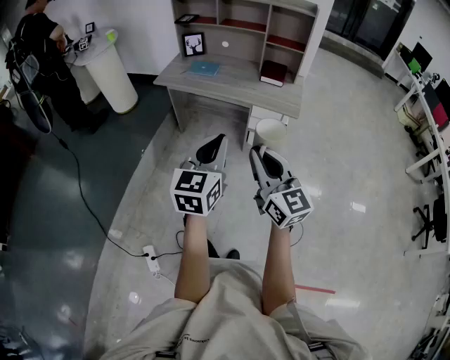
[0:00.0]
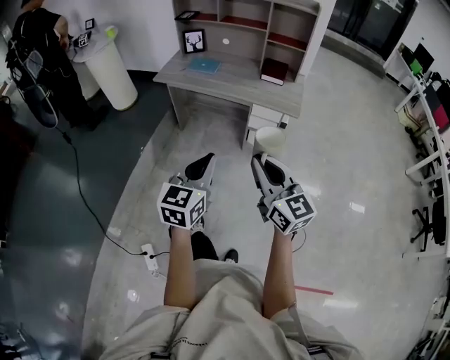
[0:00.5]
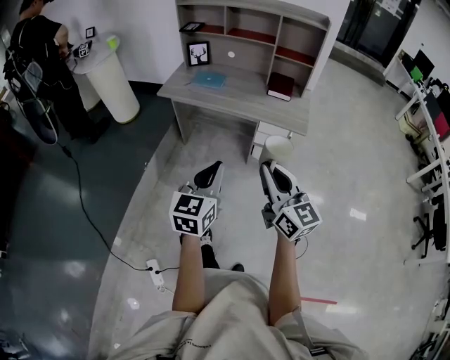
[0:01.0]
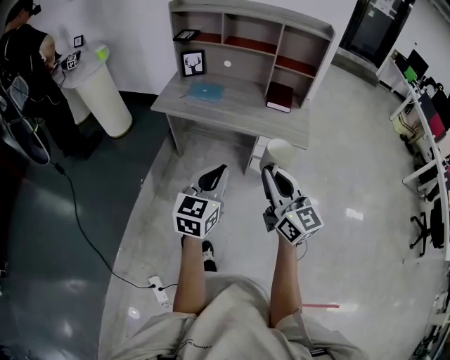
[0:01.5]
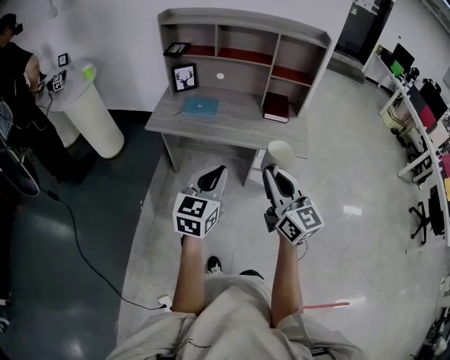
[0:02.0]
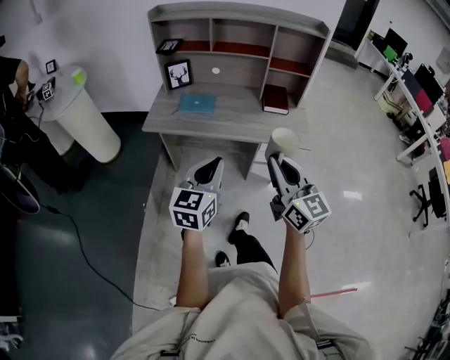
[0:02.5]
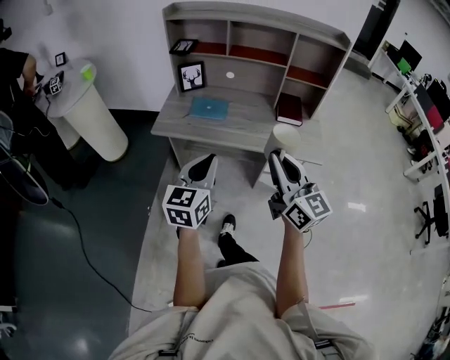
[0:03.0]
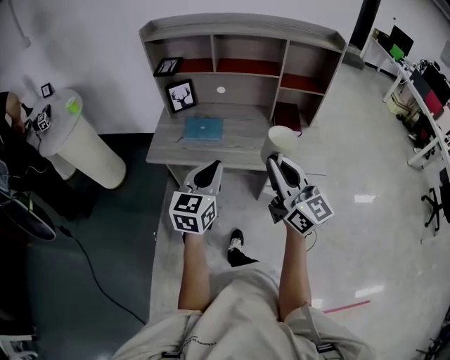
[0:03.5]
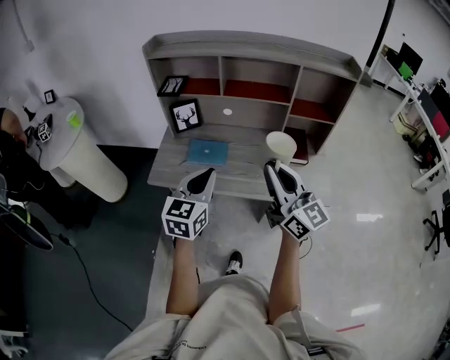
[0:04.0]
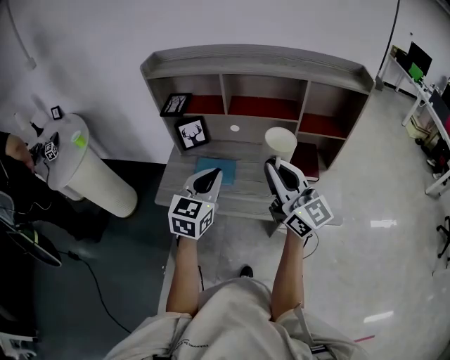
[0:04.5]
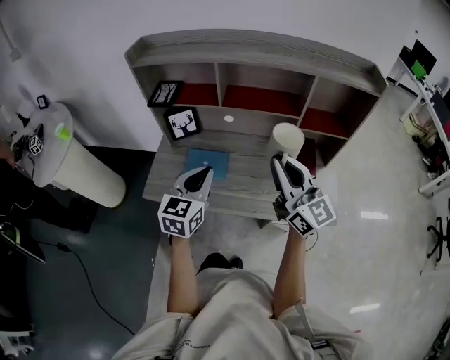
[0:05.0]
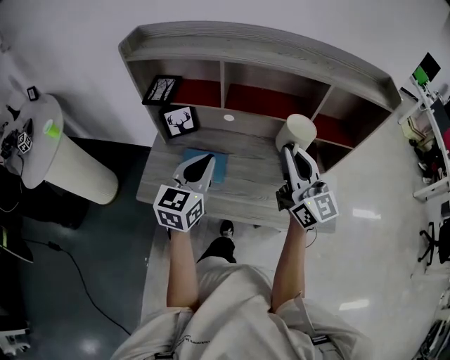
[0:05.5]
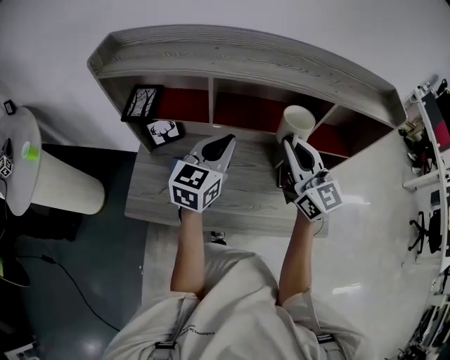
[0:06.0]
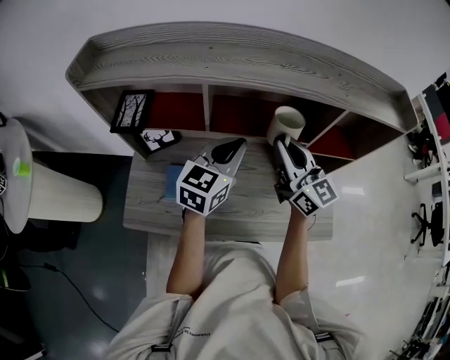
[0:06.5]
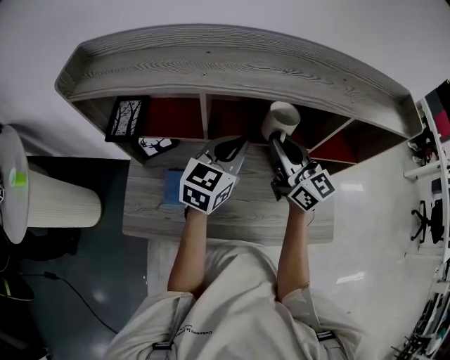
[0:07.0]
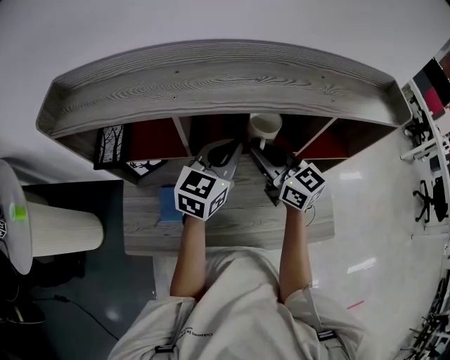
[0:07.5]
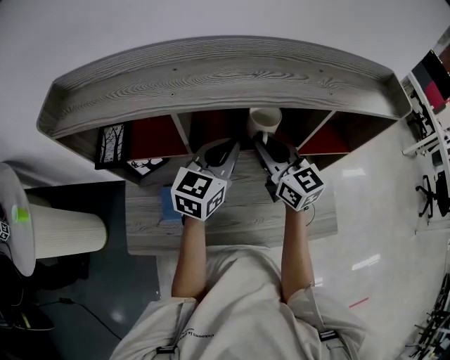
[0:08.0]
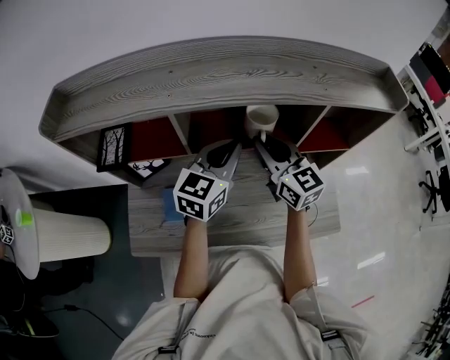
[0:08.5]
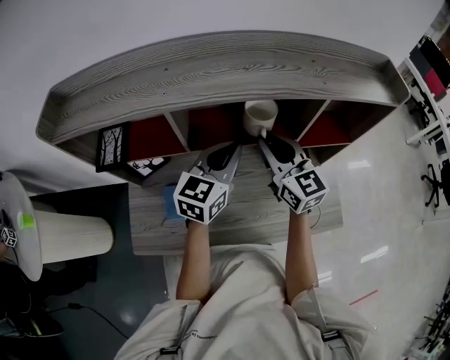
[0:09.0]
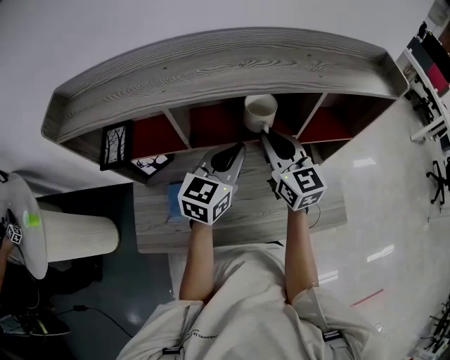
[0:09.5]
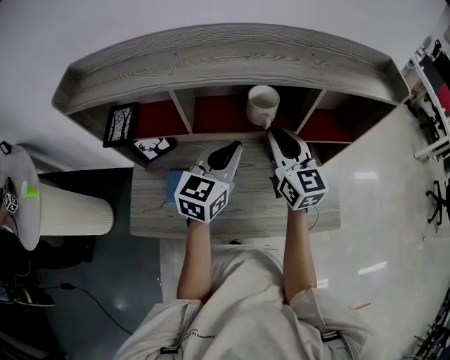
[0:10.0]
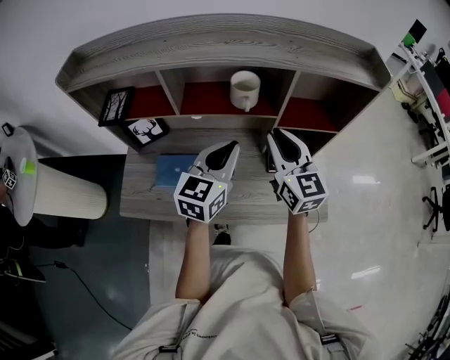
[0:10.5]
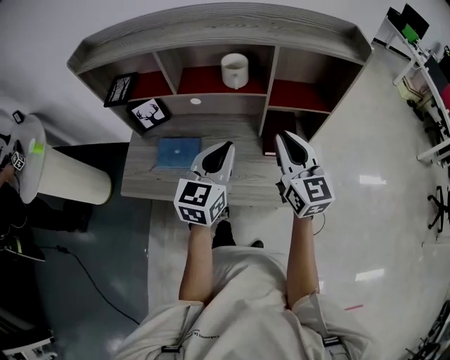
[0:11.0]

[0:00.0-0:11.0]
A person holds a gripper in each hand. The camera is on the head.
0:00.0 to 0:02.0: The left gripper moves forward and to the left, about 25 cm; the right gripper moves forward, about 20 cm.
0:02.0 to 0:03.5: The grippers both shift forward by approximately 20 cm.
0:03.5 to 0:05.5: The grippers both shift forward by roughly 30 cm.
0:05.5 to 0:07.5: The right gripper heads forward, covering approximately 20 cm, and turns by about 20 degrees. Meanwhile the left gripper is displaced forward and to the right by approximately 25 cm, and swivels about 20 degrees.
0:07.5 to 0:09.0: The grippers move only a little.
0:09.0 to 0:11.0: The two grippers go some 20 cm backward and to the right.

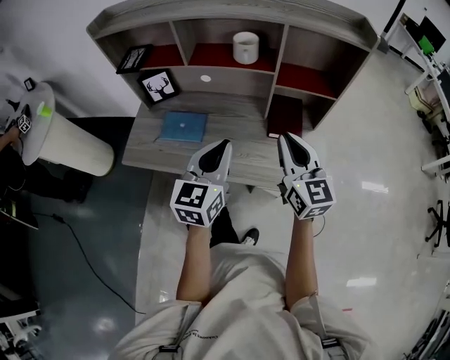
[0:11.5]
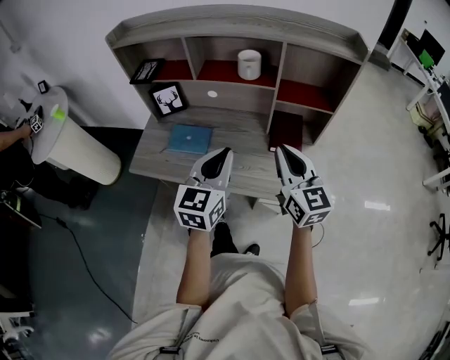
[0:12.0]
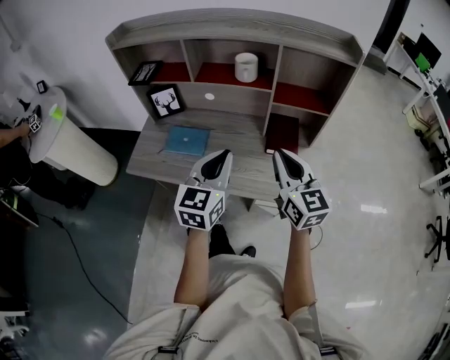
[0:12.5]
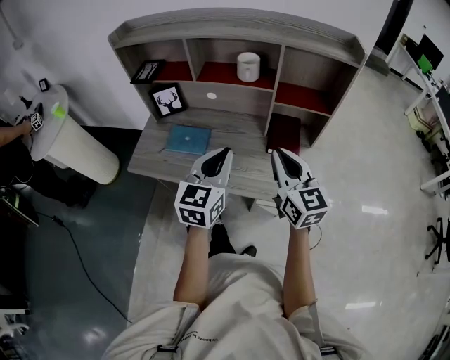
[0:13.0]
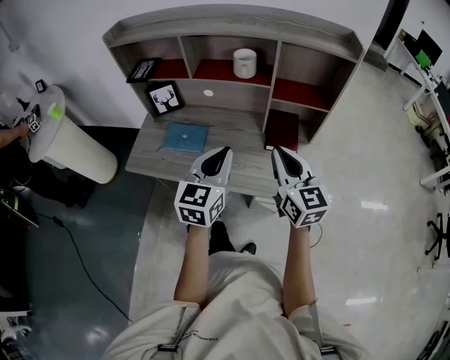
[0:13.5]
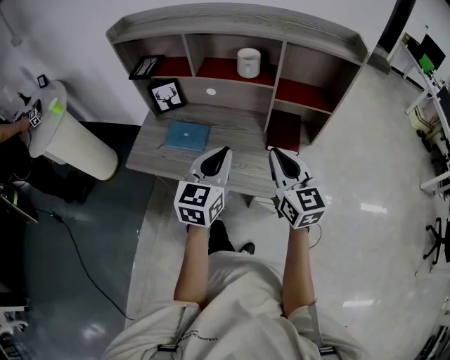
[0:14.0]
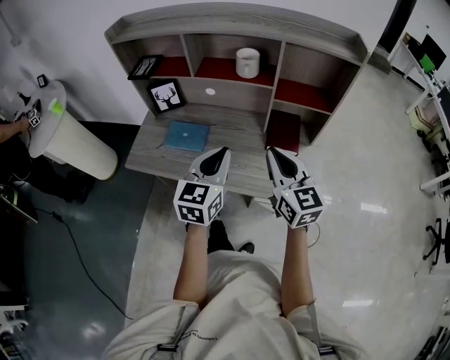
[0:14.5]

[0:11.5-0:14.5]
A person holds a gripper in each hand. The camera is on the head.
0:11.5 to 0:14.5: There are only small adjustments of the grippers.

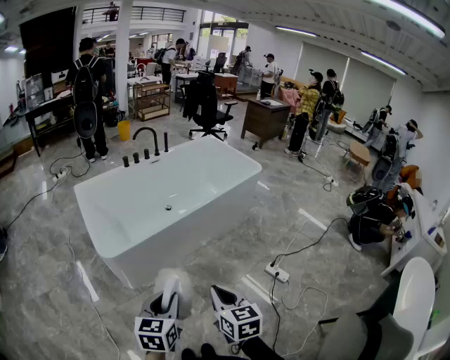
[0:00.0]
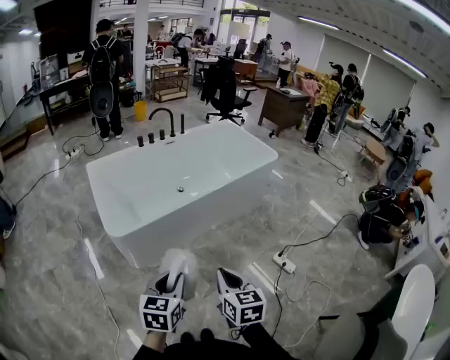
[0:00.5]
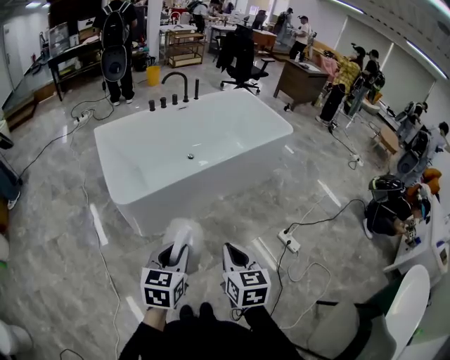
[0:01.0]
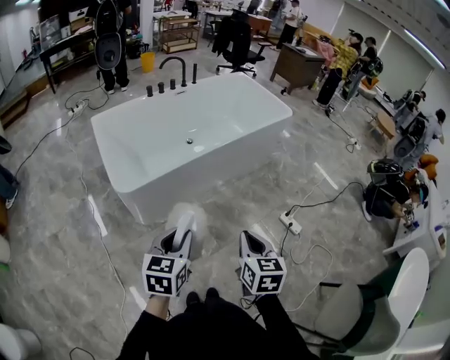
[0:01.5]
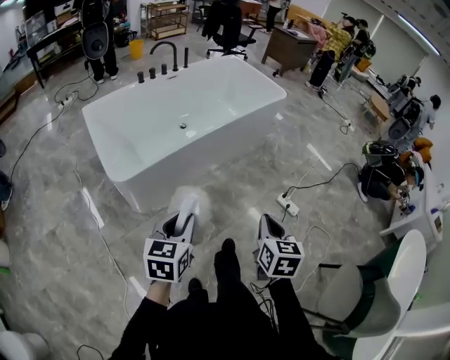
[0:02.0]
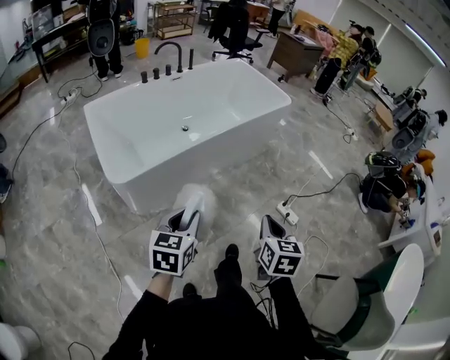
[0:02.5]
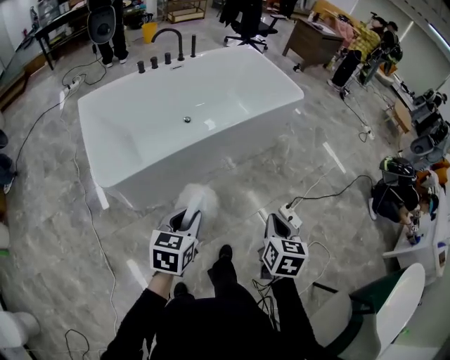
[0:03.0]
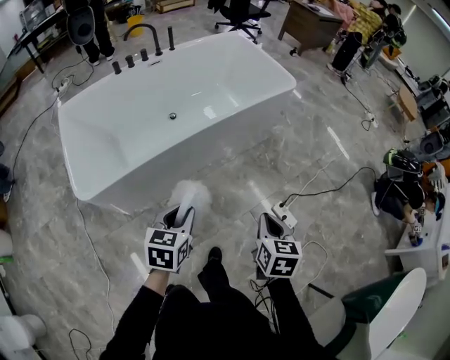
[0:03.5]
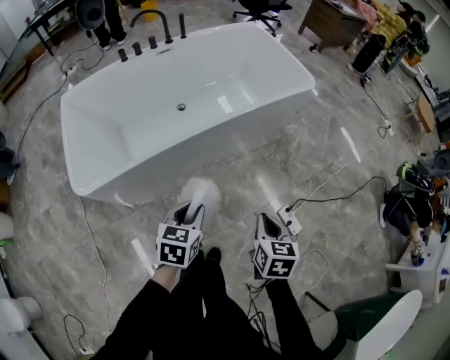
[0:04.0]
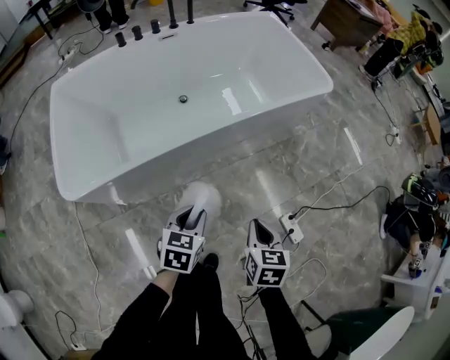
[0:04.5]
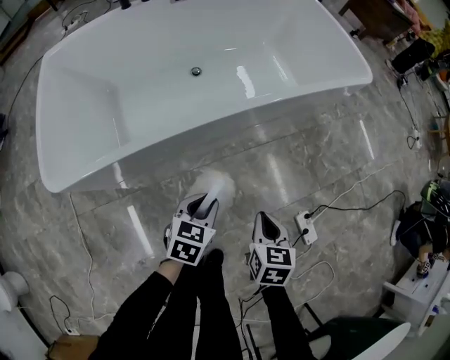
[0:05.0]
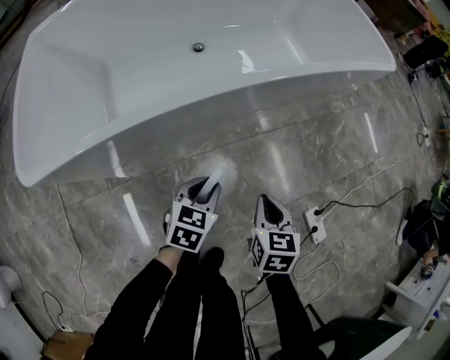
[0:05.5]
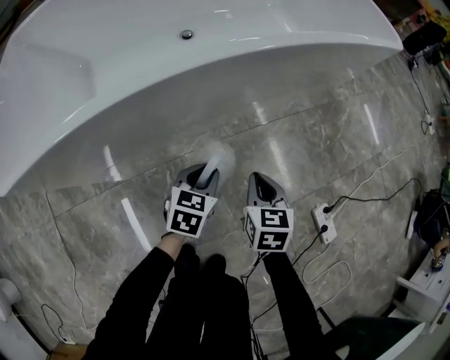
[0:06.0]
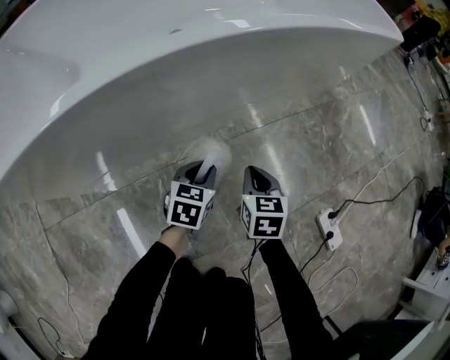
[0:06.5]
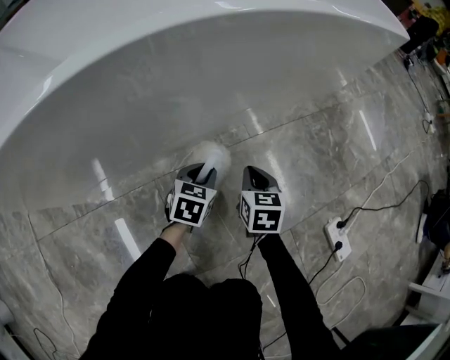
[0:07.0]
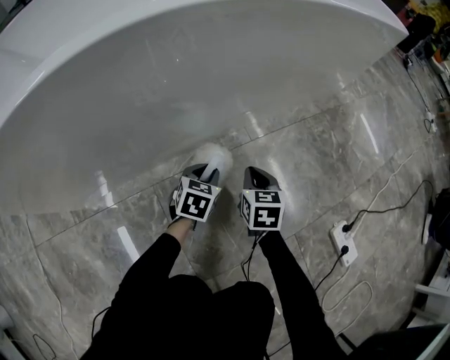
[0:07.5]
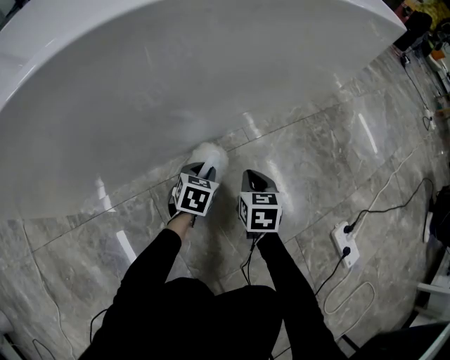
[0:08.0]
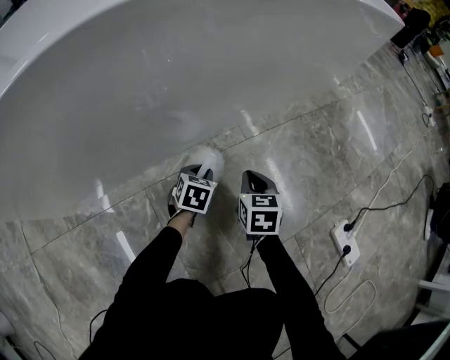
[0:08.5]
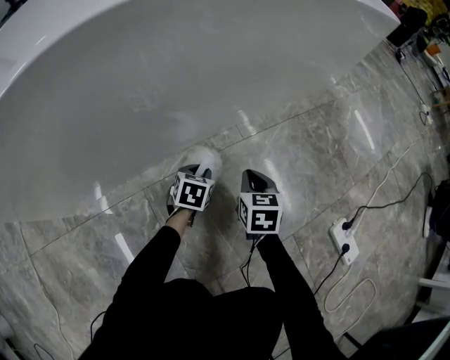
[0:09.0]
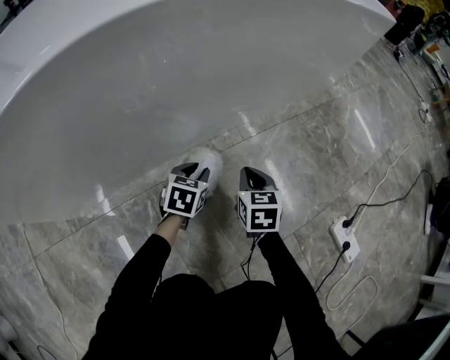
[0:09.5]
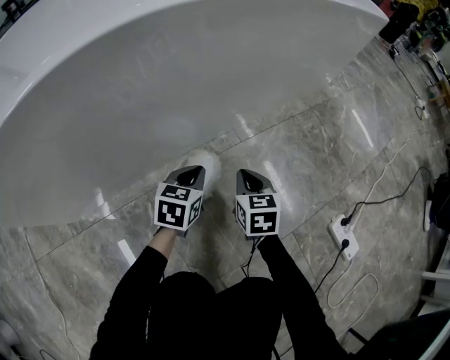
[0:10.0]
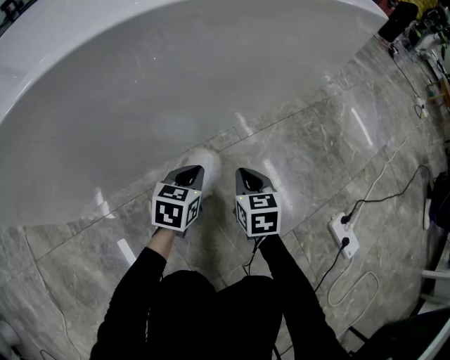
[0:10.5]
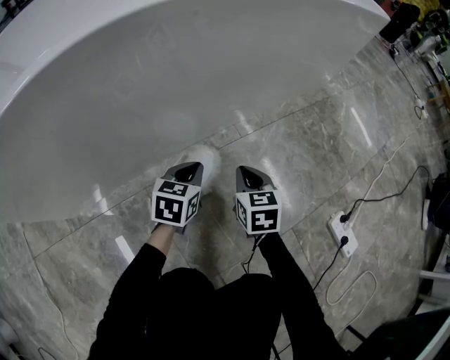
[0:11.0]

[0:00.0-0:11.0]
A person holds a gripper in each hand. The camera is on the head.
0:00.0 to 0:02.0: The right gripper goes roughly 5 cm to the right, and changes its angle by approximately 20 degrees.
0:02.0 to 0:03.5: Both grippers move forward and to the right, approximately 30 cm.
0:03.5 to 0:05.5: Both grippers travel together downward and forward, approximately 40 cm.
0:05.5 to 0:07.5: The left gripper is displaced downward by roughly 30 cm. The right gripper moves downward and forward, some 30 cm.
0:07.5 to 0:09.0: The left gripper shifts approximately 5 cm downward.
0:09.0 to 0:11.0: The left gripper goes approximately 10 cm upward, and closes up.

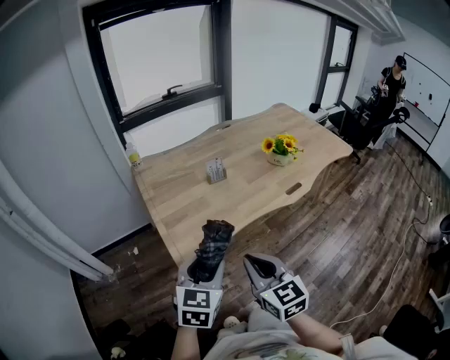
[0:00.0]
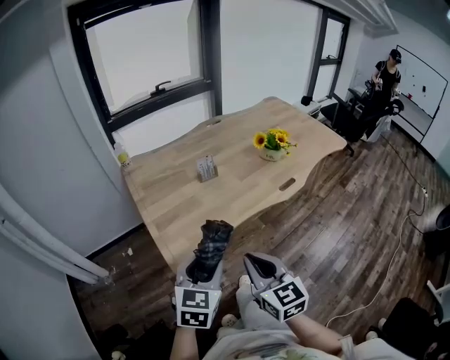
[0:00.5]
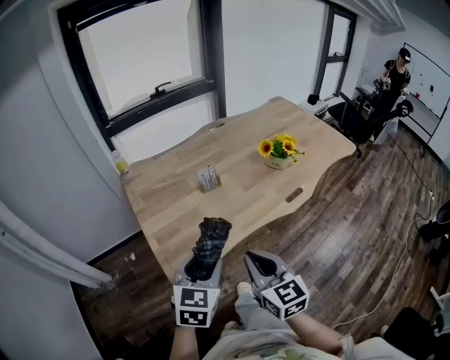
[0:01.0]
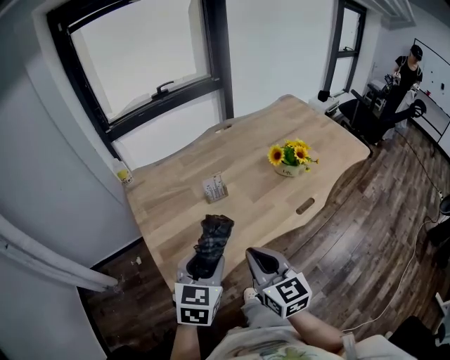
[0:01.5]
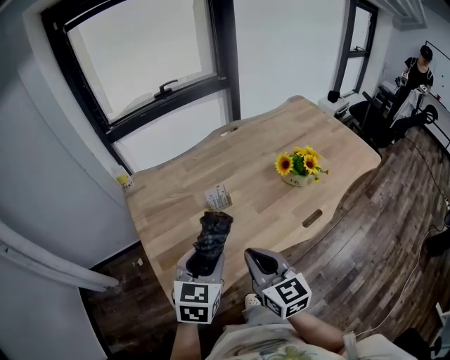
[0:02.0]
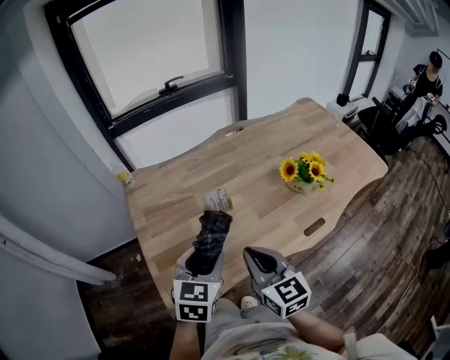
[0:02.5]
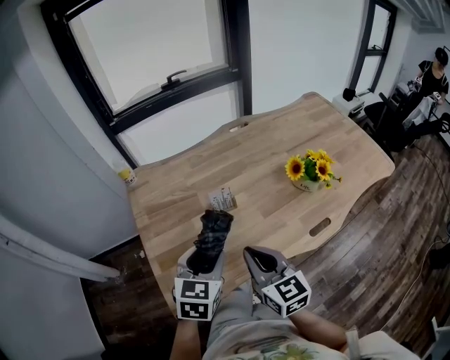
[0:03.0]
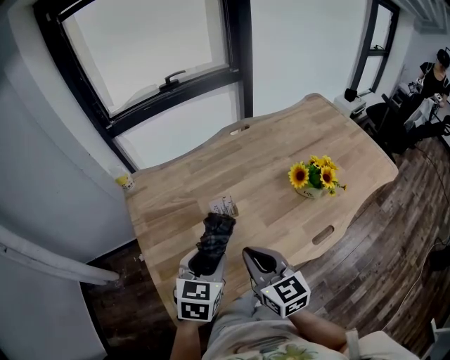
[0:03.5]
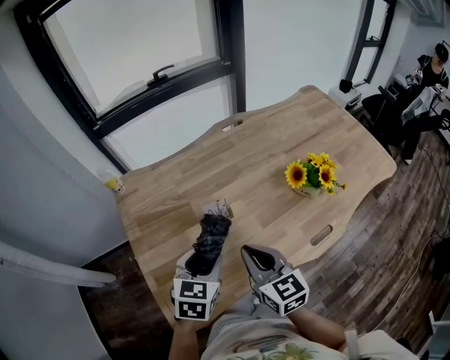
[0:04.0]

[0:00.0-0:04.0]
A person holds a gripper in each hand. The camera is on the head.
0:00.0 to 0:02.0: Both grippers move forward, about 25 cm.
0:02.0 to 0:04.0: The left gripper is displaced forward and downward by some 15 cm. The right gripper moves forward, some 10 cm.
